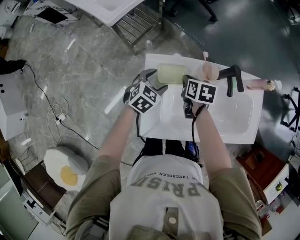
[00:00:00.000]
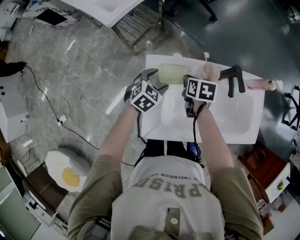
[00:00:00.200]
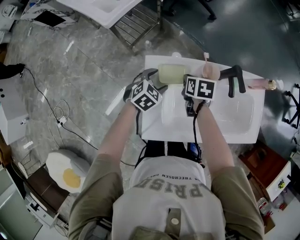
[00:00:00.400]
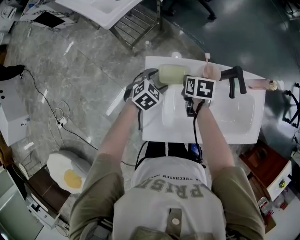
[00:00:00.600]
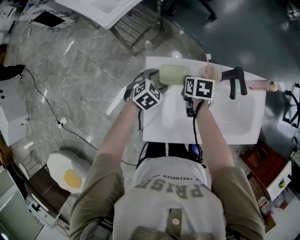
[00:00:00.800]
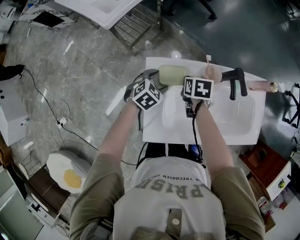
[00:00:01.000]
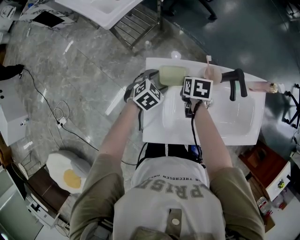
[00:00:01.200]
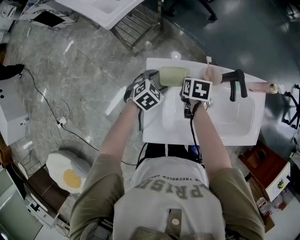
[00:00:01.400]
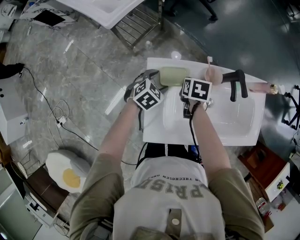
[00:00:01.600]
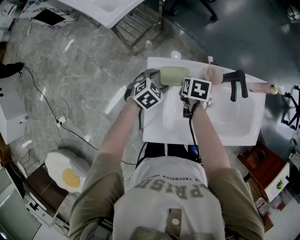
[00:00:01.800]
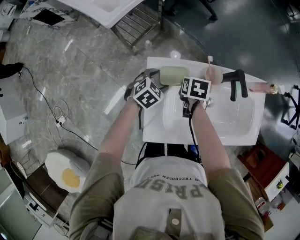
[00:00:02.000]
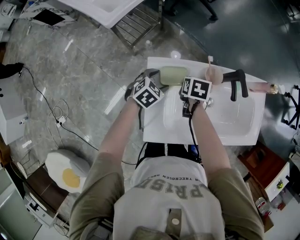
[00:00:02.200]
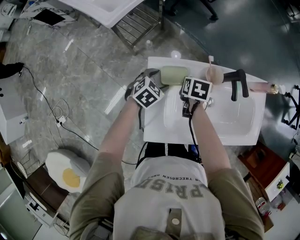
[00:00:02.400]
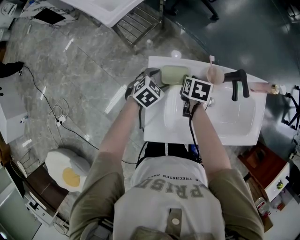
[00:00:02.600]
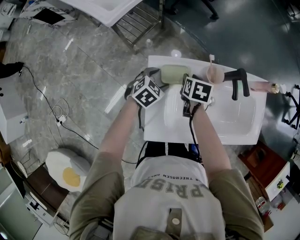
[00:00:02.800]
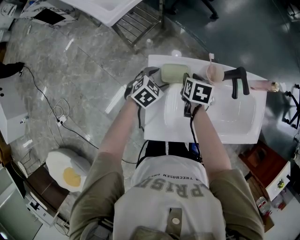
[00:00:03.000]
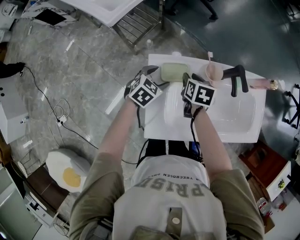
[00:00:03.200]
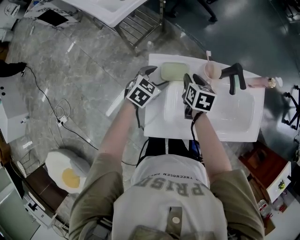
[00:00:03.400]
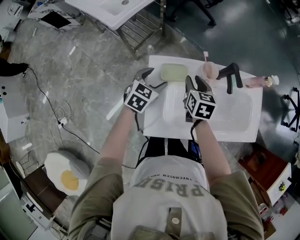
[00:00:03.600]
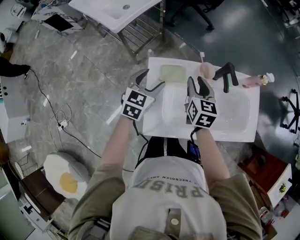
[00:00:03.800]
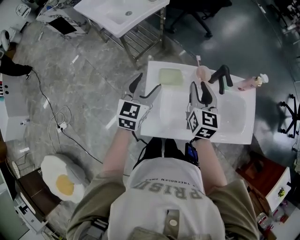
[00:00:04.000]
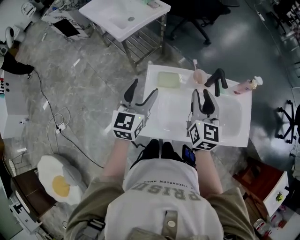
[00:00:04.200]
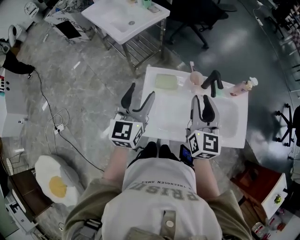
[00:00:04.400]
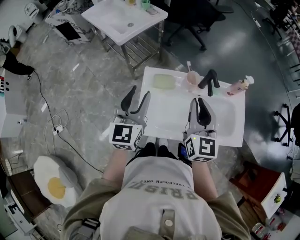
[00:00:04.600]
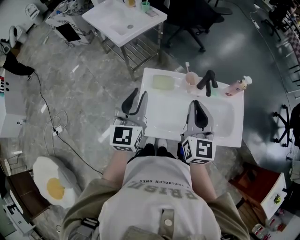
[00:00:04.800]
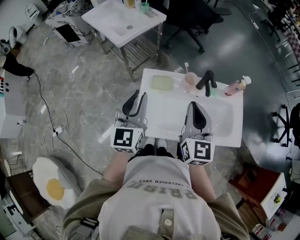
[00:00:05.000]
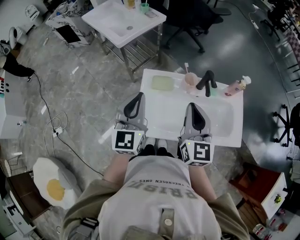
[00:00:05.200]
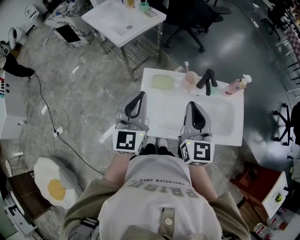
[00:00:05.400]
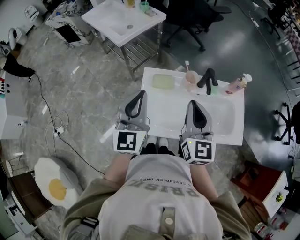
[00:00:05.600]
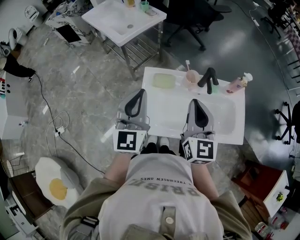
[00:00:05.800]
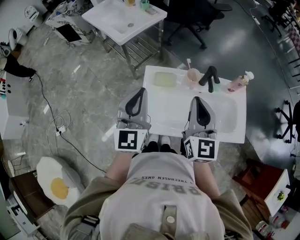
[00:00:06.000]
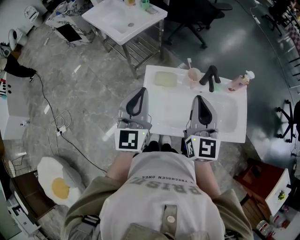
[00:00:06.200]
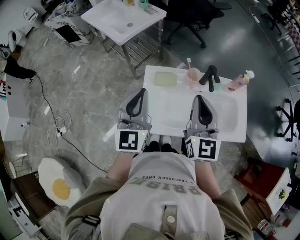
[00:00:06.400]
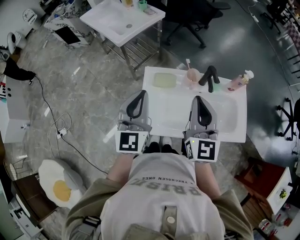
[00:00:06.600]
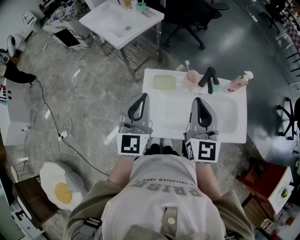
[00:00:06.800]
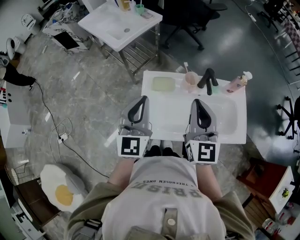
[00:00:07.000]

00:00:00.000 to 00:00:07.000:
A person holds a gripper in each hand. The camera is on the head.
00:00:00.000 to 00:00:01.400: The grippers make only small movements.
00:00:01.400 to 00:00:02.800: The right gripper opens up.
00:00:02.800 to 00:00:04.200: Both grippers move upward, roughly 25 cm. The left gripper tips its fingers upward by roughly 40 degrees. Meanwhile the right gripper points its fingers about 50 degrees further upward.
00:00:04.200 to 00:00:05.600: The right gripper heads backward and upward, covering approximately 10 cm, and closes its fingers. The left gripper moves upward and backward, approximately 10 cm, and closes its fingers.
00:00:05.600 to 00:00:07.000: The grippers make only small movements.

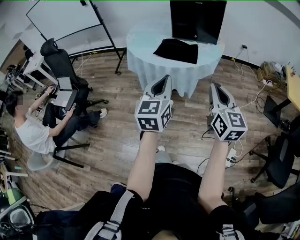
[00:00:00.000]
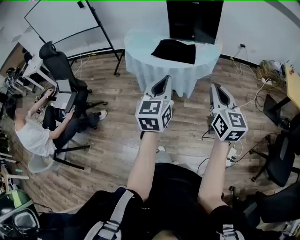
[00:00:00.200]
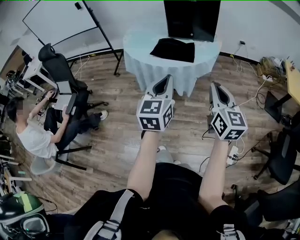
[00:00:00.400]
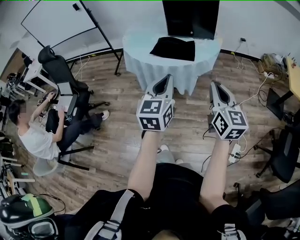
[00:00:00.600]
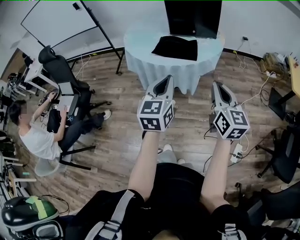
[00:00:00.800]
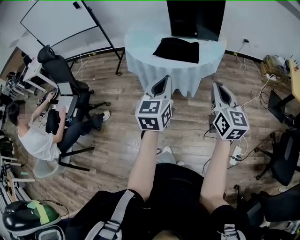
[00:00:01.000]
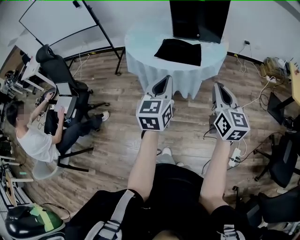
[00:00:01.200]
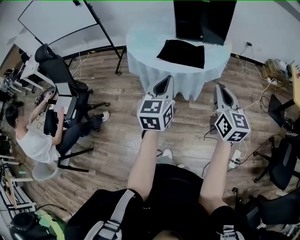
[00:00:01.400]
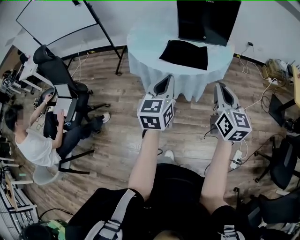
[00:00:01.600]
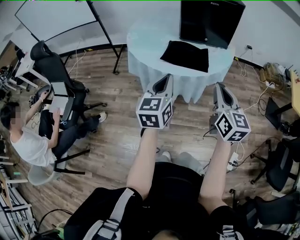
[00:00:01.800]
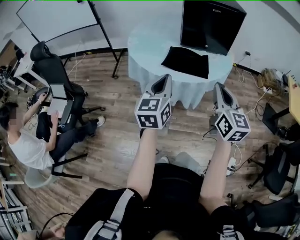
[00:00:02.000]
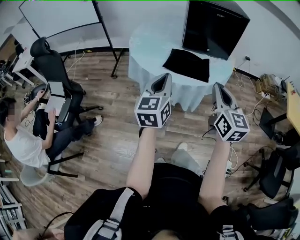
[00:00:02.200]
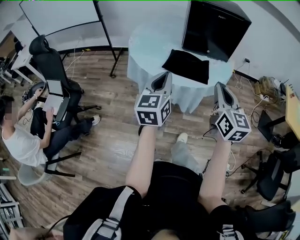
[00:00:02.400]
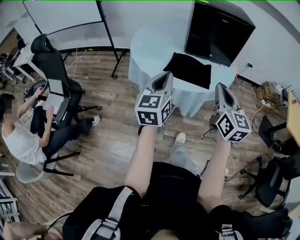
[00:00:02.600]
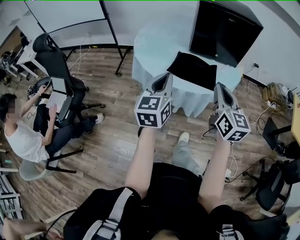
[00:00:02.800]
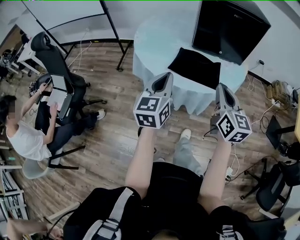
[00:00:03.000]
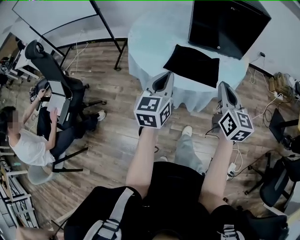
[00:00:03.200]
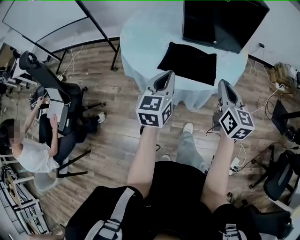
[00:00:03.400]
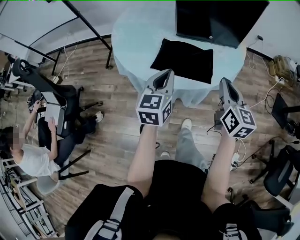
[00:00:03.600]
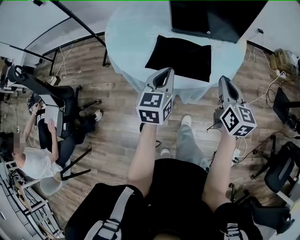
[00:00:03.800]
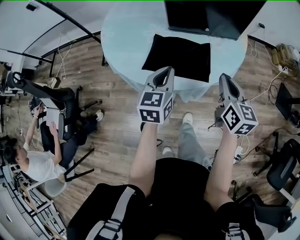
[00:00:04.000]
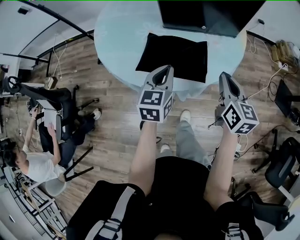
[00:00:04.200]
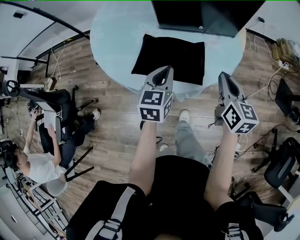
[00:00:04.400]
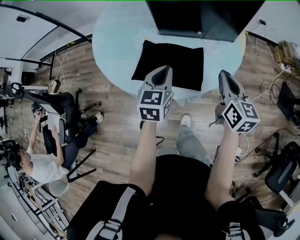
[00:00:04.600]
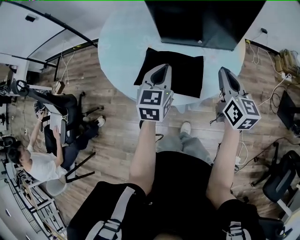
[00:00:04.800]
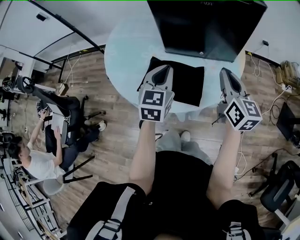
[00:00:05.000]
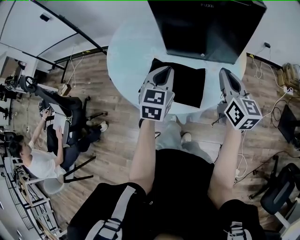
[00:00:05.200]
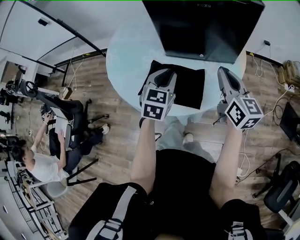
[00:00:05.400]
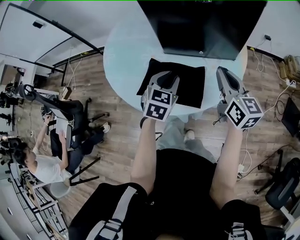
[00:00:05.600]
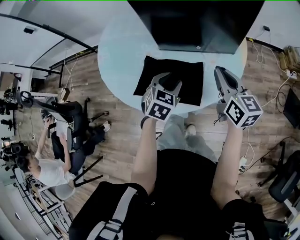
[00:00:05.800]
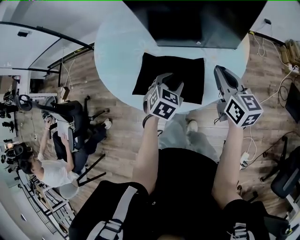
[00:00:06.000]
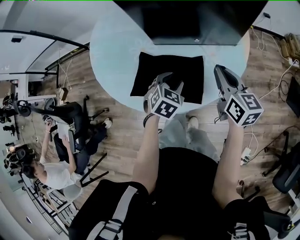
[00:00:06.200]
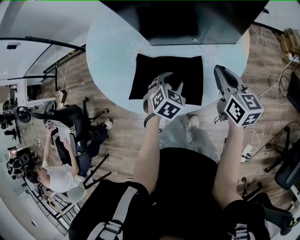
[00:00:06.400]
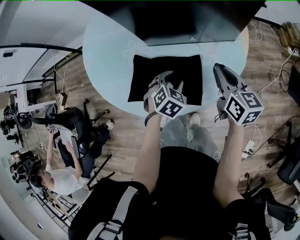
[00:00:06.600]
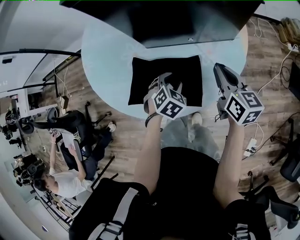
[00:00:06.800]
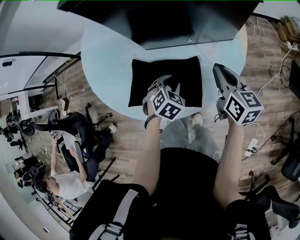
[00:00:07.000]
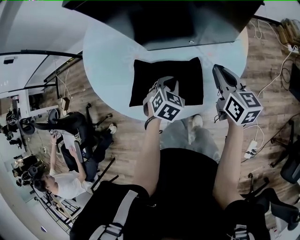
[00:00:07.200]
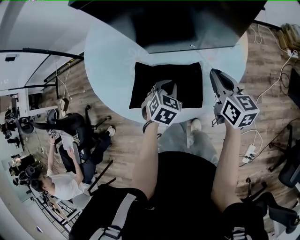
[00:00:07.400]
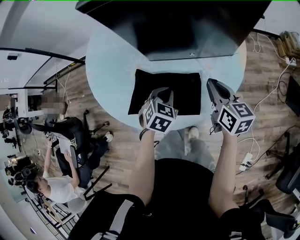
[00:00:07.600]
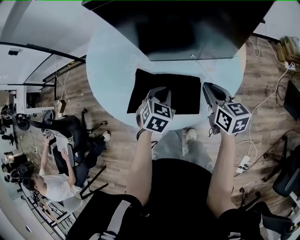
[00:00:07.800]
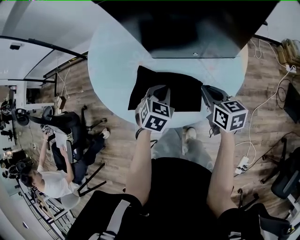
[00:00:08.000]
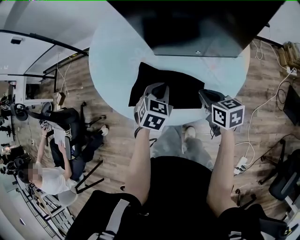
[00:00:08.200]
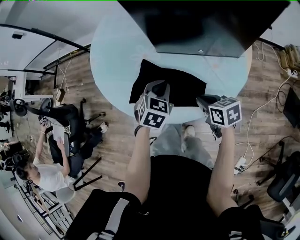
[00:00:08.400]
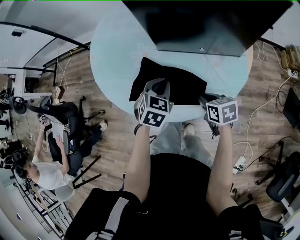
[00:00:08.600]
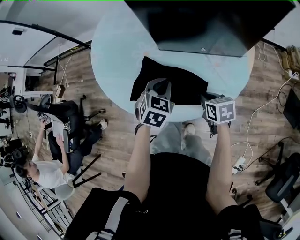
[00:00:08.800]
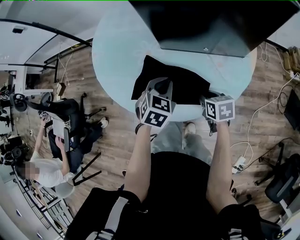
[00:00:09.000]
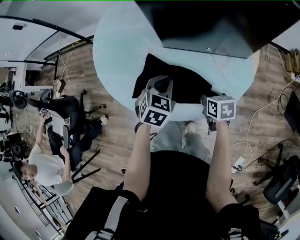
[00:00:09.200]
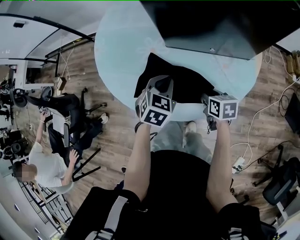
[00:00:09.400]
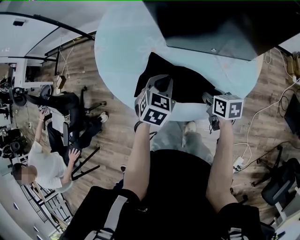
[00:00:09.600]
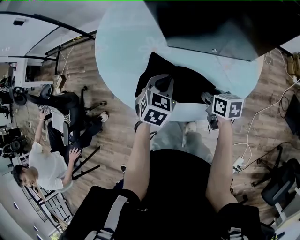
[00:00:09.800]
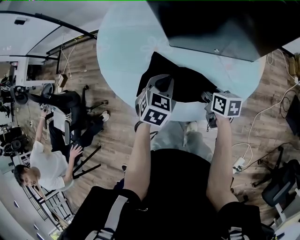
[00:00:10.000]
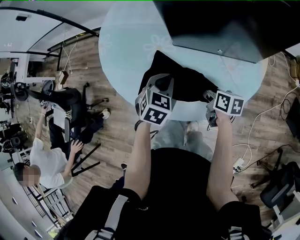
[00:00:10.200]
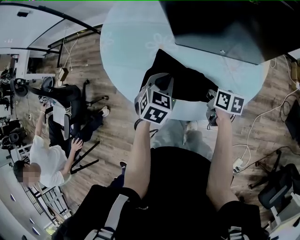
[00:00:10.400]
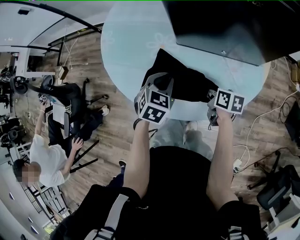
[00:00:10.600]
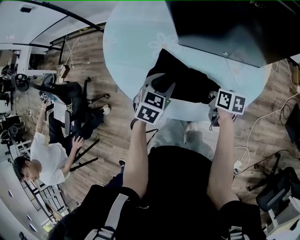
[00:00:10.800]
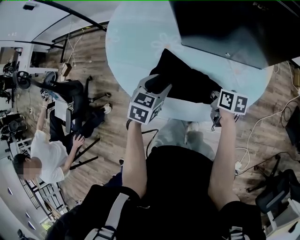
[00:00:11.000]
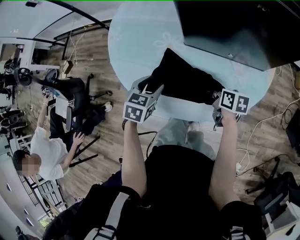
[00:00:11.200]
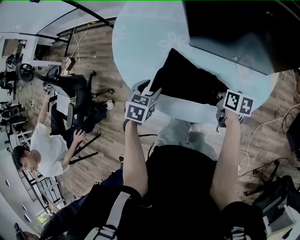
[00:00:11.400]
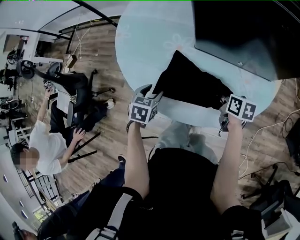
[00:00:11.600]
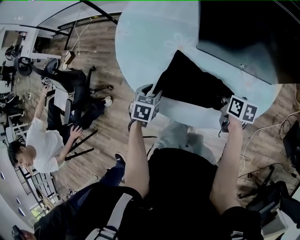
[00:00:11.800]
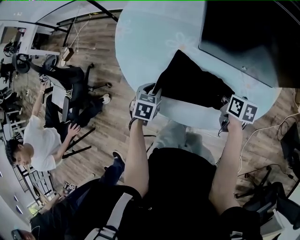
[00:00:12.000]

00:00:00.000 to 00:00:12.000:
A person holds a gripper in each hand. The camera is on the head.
00:00:00.000 to 00:00:01.600: The right gripper goes about 10 cm forward; the left gripper moves forward and to the left, approximately 15 cm.
00:00:01.600 to 00:00:03.000: The right gripper goes about 15 cm forward. The left gripper moves forward and to the left, roughly 15 cm.
00:00:03.000 to 00:00:04.400: The left gripper goes some 25 cm forward, downward and to the right, and changes its angle by approximately 20 degrees. The right gripper heads forward, to the right and downward, covering some 25 cm.
00:00:04.400 to 00:00:06.000: The right gripper is displaced forward by approximately 10 cm; the left gripper heads downward and forward, covering about 10 cm, turns by about 30 degrees, and opens.
00:00:06.000 to 00:00:07.600: The right gripper heads downward, covering some 5 cm. Meanwhile the left gripper closes its fingers.
00:00:07.600 to 00:00:09.000: The left gripper shifts by approximately 5 cm, while the right gripper heads downward and to the left, covering some 15 cm, swivels approximately 30 degrees, and opens.
00:00:09.000 to 00:00:10.400: The left gripper changes place by roughly 5 cm, while the right gripper changes place by approximately 5 cm, and changes its angle by roughly 20 degrees.
00:00:10.400 to 00:00:12.000: The left gripper is displaced to the left and downward by about 15 cm, swivels some 30 degrees, and opens its fingers.

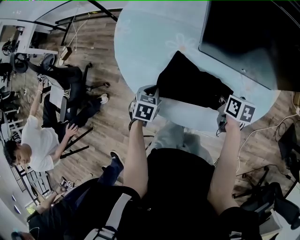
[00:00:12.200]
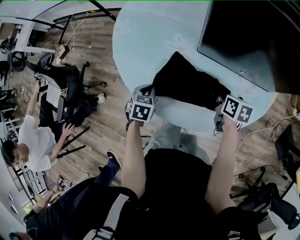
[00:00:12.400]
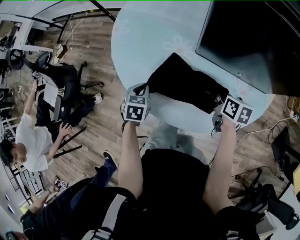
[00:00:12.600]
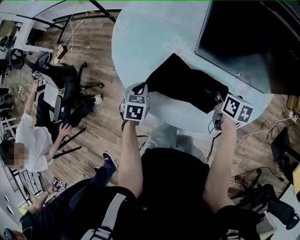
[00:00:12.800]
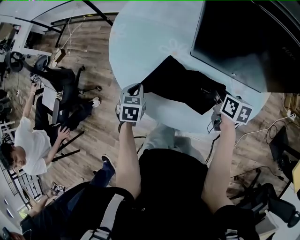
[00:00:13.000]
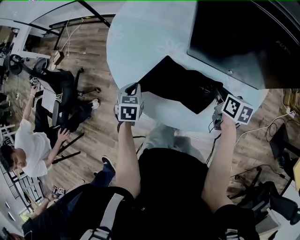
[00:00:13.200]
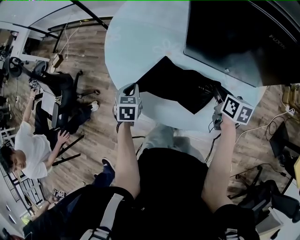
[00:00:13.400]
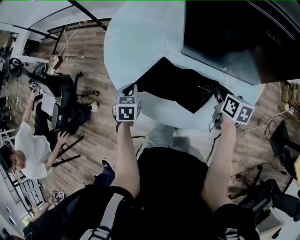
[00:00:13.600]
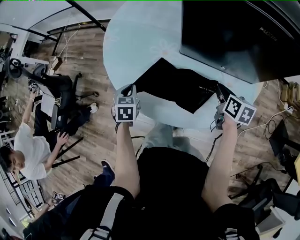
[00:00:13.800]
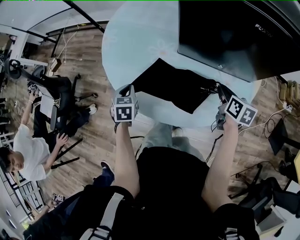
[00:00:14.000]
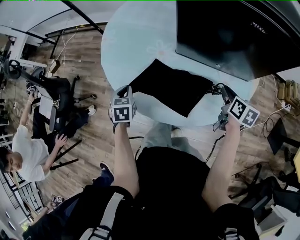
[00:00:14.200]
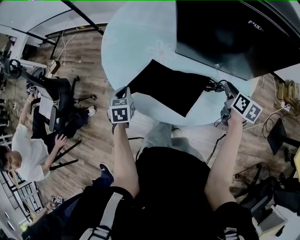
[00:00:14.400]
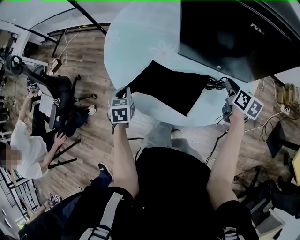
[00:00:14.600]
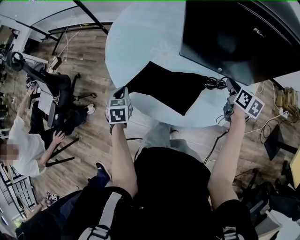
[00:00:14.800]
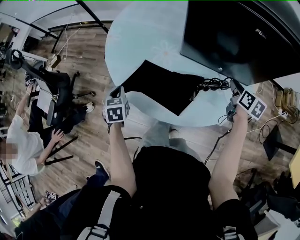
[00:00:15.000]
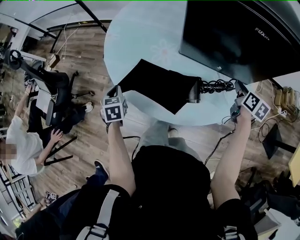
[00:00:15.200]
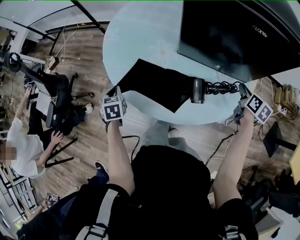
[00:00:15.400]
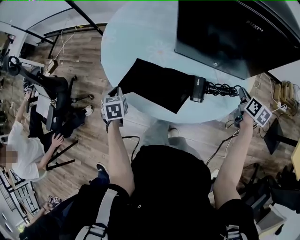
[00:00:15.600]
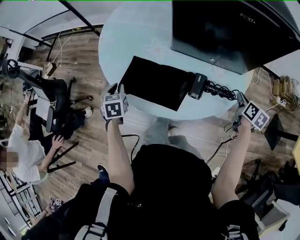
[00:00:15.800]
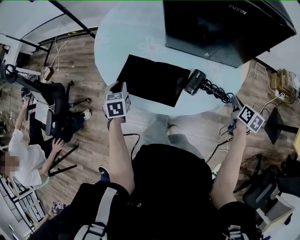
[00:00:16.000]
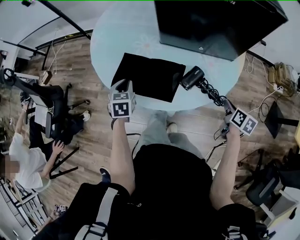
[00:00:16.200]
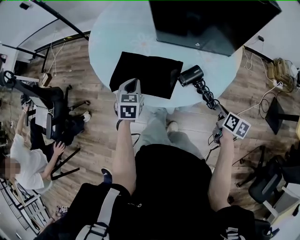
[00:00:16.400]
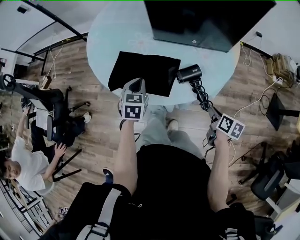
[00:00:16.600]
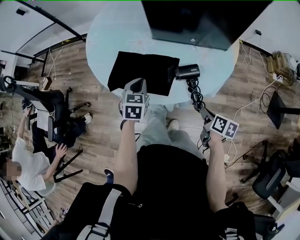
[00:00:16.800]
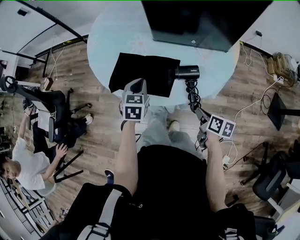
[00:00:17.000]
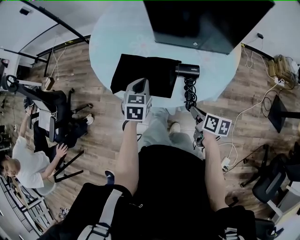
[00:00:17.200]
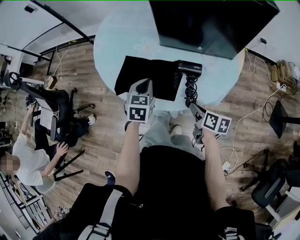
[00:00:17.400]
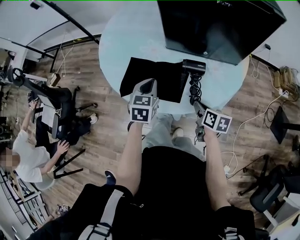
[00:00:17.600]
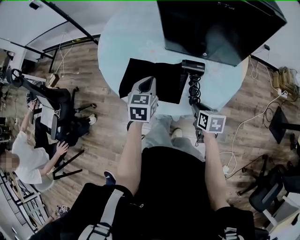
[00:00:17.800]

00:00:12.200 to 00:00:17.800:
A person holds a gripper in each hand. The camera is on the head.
00:00:12.200 to 00:00:13.600: The left gripper shifts by roughly 5 cm; the right gripper moves upward, some 5 cm.
00:00:13.600 to 00:00:15.000: The right gripper is displaced to the right by some 10 cm; the left gripper heads to the left, covering some 5 cm.
00:00:15.000 to 00:00:16.400: The left gripper heads to the right, covering approximately 15 cm, and swivels some 20 degrees; the right gripper goes some 25 cm backward.
00:00:16.400 to 00:00:17.800: The left gripper goes roughly 5 cm upward. The right gripper heads to the left and forward, covering about 15 cm, and swivels some 20 degrees.
